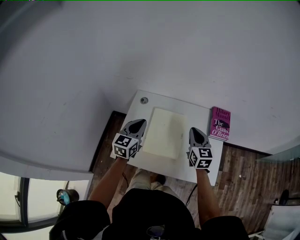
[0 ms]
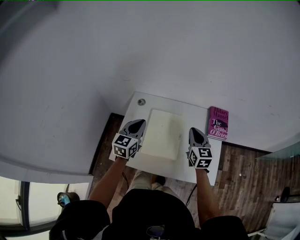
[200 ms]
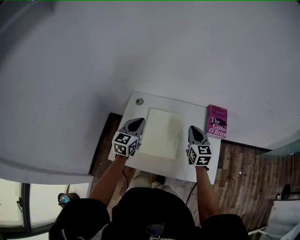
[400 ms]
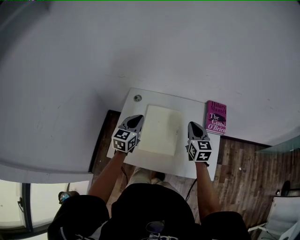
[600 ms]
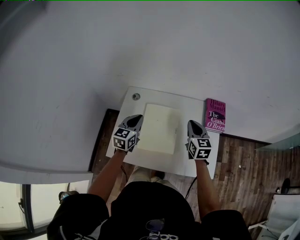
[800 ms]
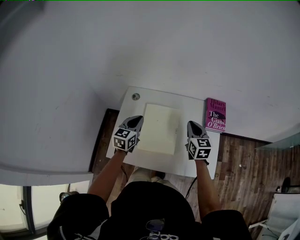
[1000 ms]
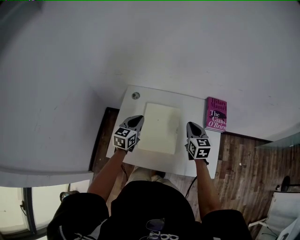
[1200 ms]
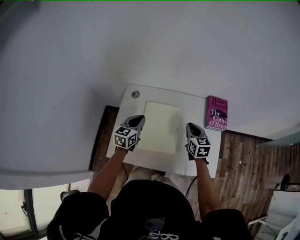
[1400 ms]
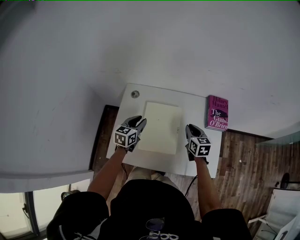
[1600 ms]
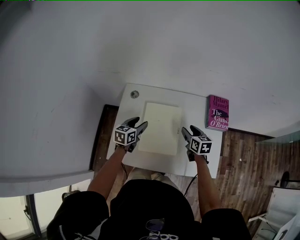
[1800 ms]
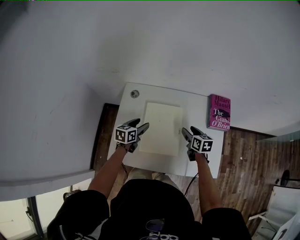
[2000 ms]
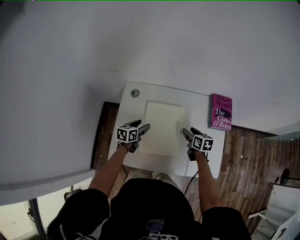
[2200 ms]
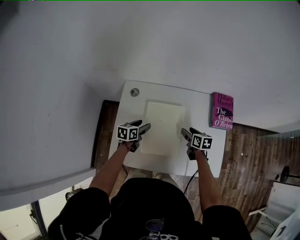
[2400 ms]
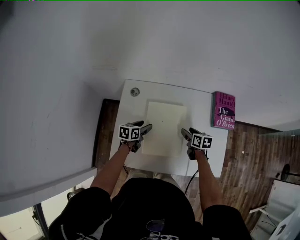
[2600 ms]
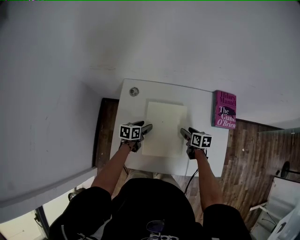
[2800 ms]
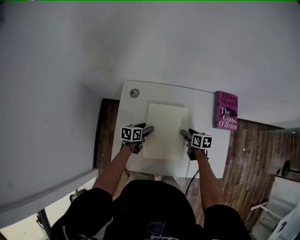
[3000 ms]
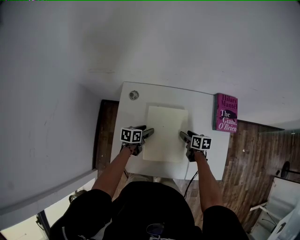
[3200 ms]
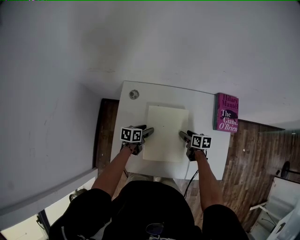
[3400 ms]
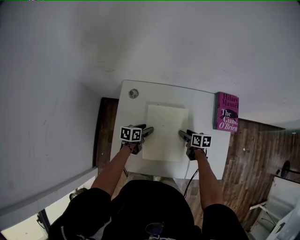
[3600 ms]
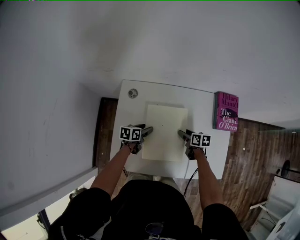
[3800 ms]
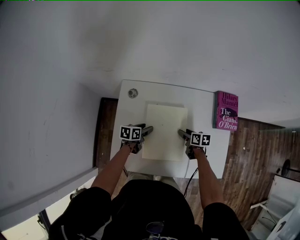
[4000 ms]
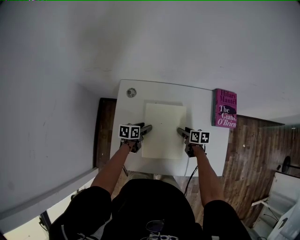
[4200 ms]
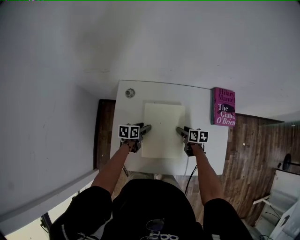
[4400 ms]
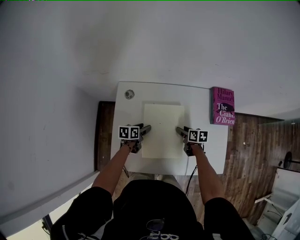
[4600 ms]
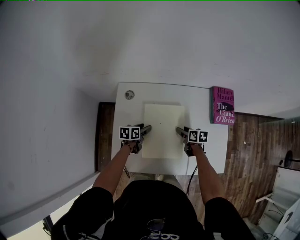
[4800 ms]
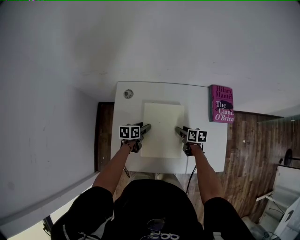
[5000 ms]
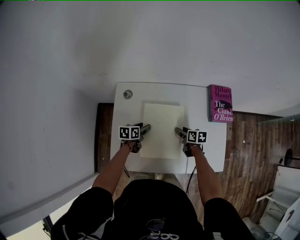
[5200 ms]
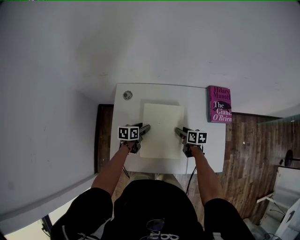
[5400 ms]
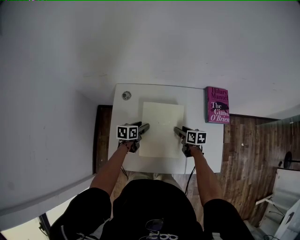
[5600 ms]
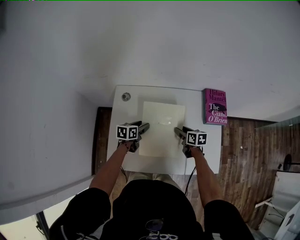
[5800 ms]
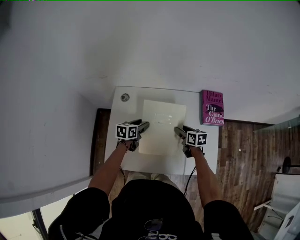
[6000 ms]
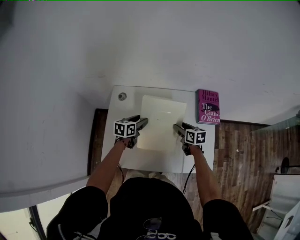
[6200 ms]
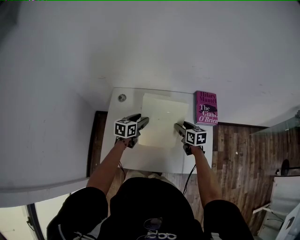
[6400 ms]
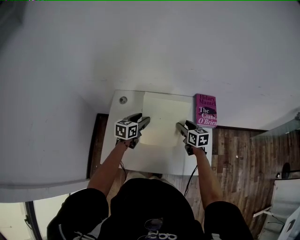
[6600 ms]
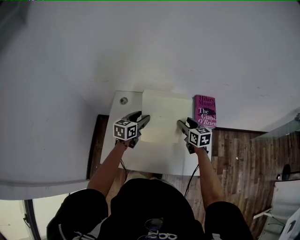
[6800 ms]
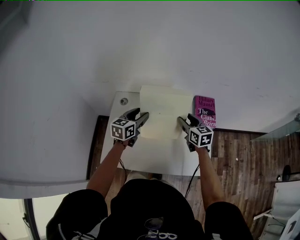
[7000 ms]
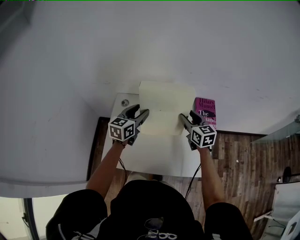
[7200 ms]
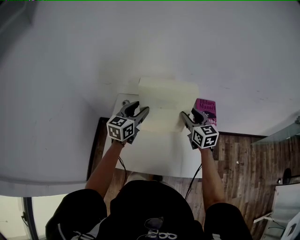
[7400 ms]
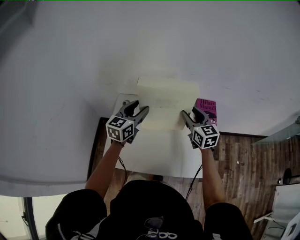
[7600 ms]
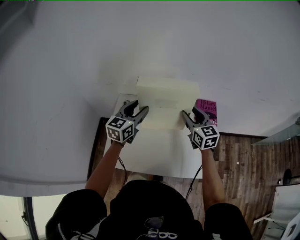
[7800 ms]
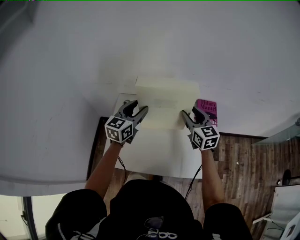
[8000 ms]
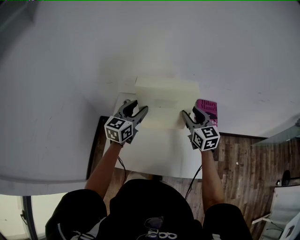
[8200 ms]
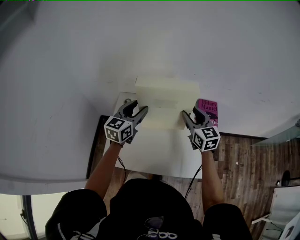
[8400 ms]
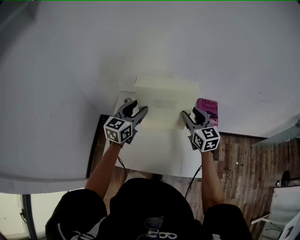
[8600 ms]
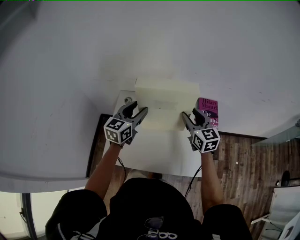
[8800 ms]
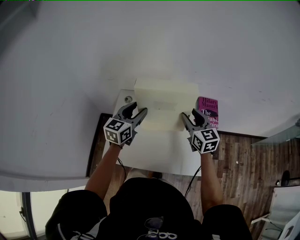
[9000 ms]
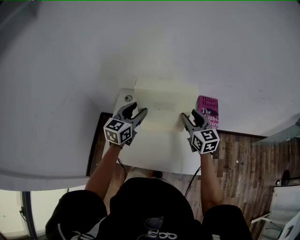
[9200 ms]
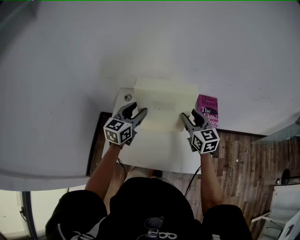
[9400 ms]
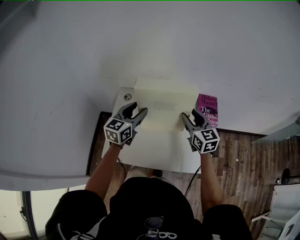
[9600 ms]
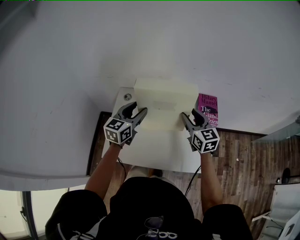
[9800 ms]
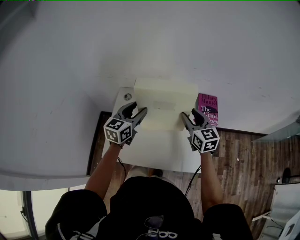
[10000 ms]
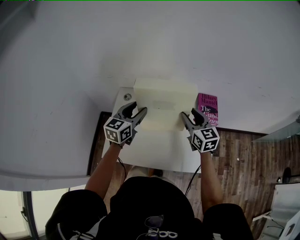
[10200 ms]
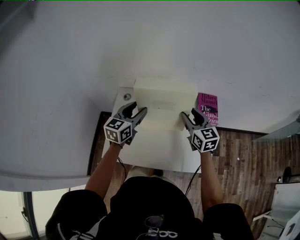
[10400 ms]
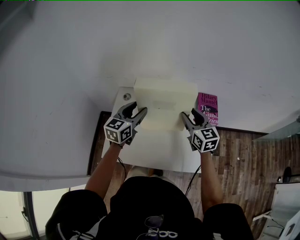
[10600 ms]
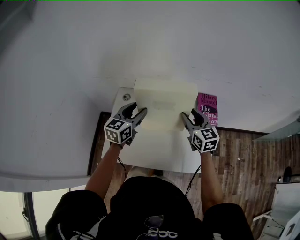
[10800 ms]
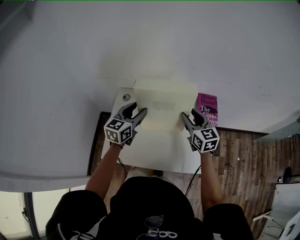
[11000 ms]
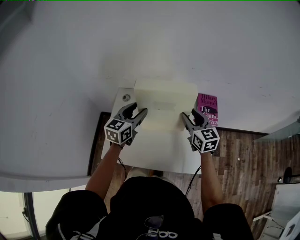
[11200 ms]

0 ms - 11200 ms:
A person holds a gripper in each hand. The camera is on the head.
0 ms - 1600 ms: The right gripper heads downward, covering approximately 10 cm; the left gripper is displaced downward and forward by roughly 15 cm.
1600 ms - 3200 ms: The two grippers go about 15 cm downward. The right gripper changes its angle by about 30 degrees, and opens up. The left gripper changes its angle by some 30 degrees, and opens its fingers.
3200 ms - 4800 ms: The two grippers keep their place.
4800 ms - 6400 ms: The grippers both shift upward and to the right by approximately 15 cm. The left gripper turns by roughly 20 degrees, while the right gripper swivels approximately 20 degrees.
6400 ms - 8000 ms: Both grippers move upward, about 20 cm. The left gripper changes its angle by about 30 degrees, while the right gripper changes its angle by roughly 30 degrees.
8000 ms - 11200 ms: The grippers make only small movements.

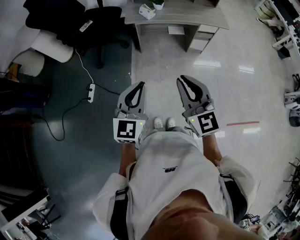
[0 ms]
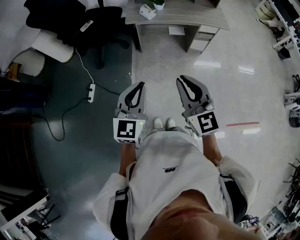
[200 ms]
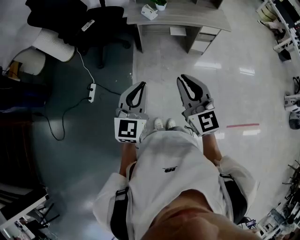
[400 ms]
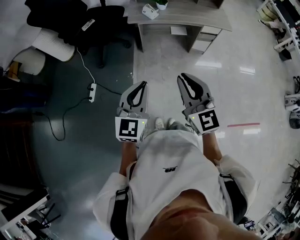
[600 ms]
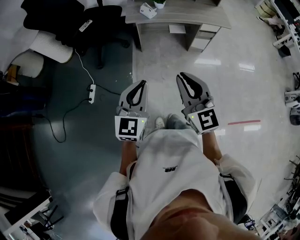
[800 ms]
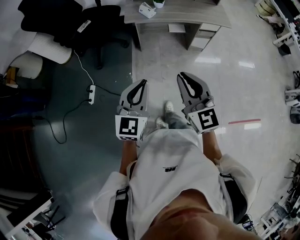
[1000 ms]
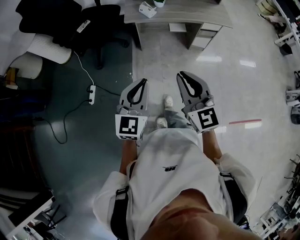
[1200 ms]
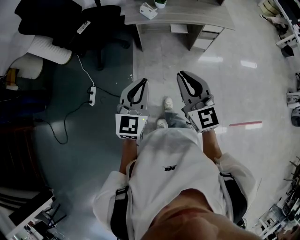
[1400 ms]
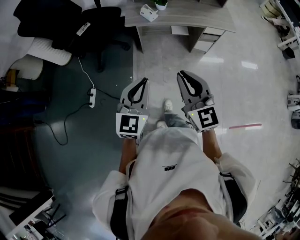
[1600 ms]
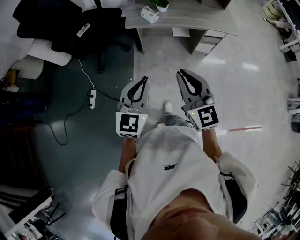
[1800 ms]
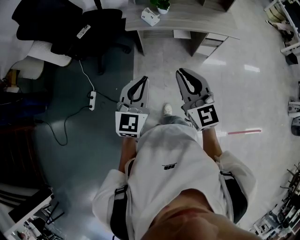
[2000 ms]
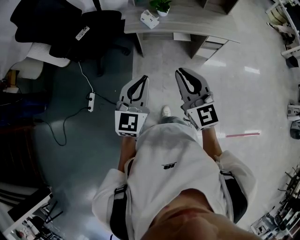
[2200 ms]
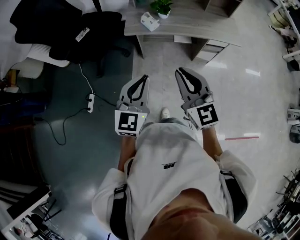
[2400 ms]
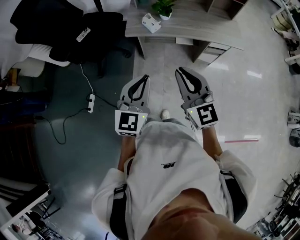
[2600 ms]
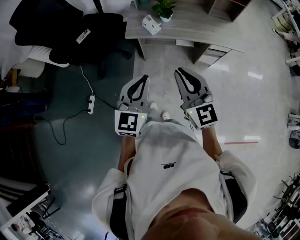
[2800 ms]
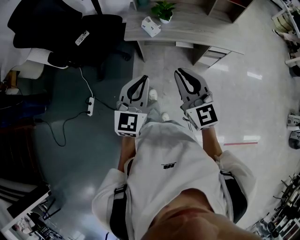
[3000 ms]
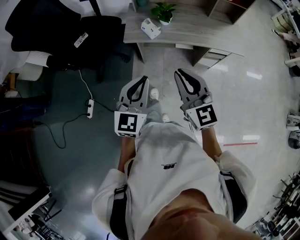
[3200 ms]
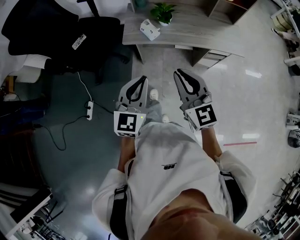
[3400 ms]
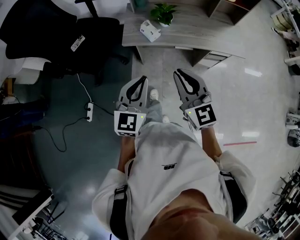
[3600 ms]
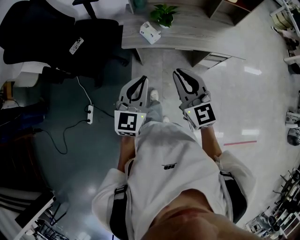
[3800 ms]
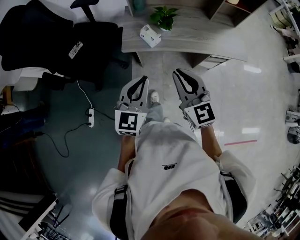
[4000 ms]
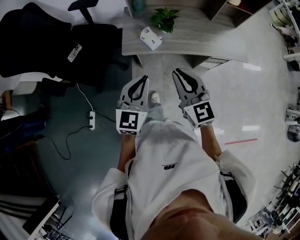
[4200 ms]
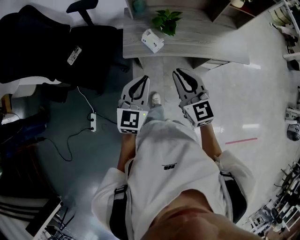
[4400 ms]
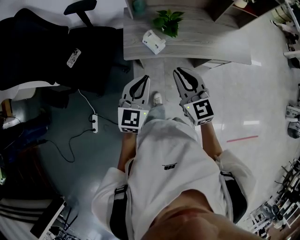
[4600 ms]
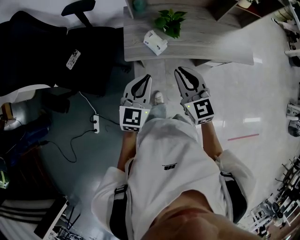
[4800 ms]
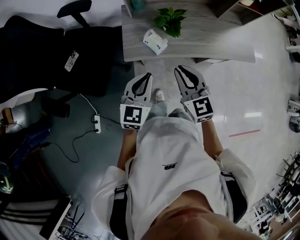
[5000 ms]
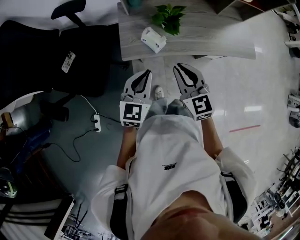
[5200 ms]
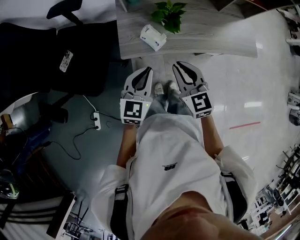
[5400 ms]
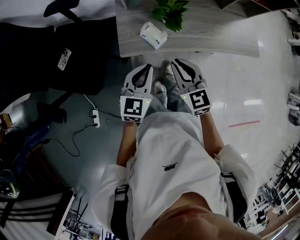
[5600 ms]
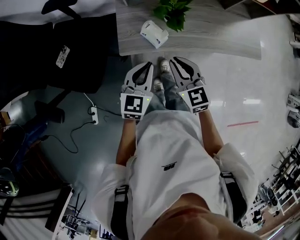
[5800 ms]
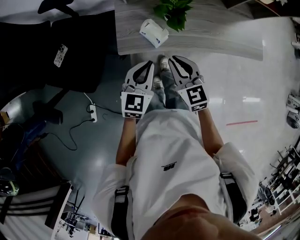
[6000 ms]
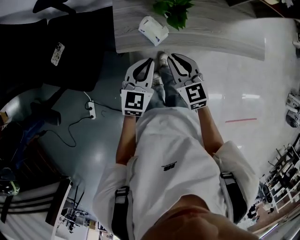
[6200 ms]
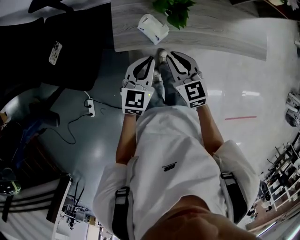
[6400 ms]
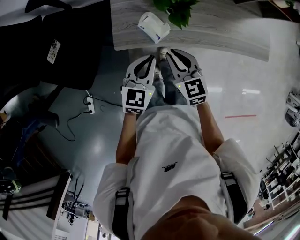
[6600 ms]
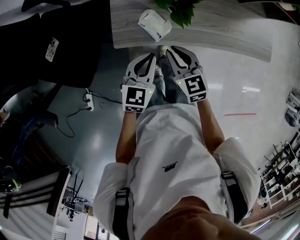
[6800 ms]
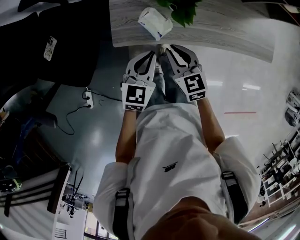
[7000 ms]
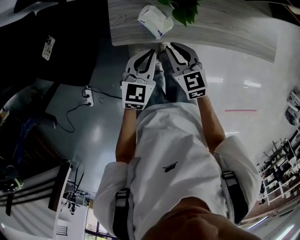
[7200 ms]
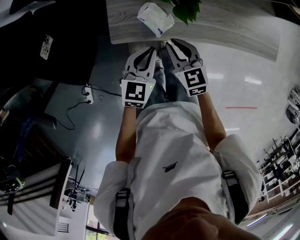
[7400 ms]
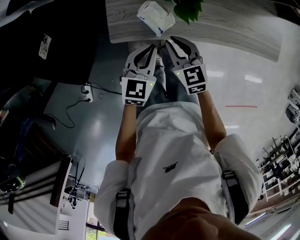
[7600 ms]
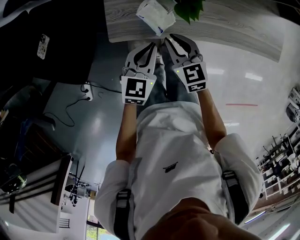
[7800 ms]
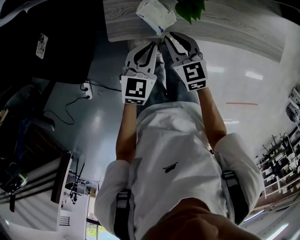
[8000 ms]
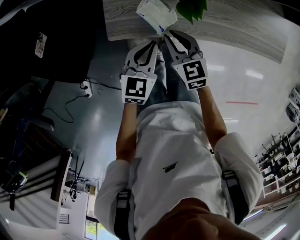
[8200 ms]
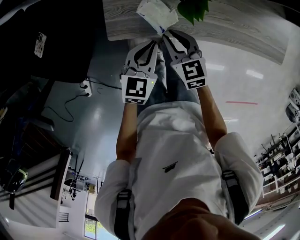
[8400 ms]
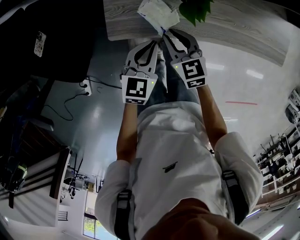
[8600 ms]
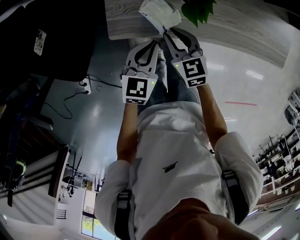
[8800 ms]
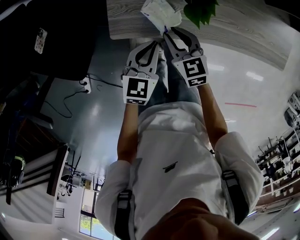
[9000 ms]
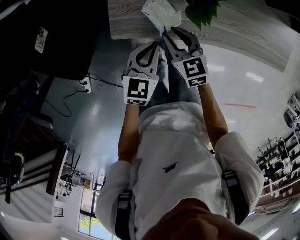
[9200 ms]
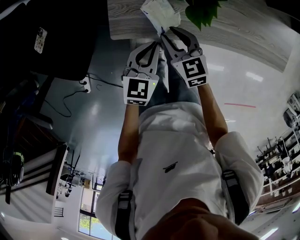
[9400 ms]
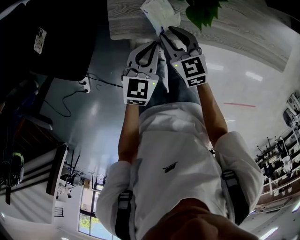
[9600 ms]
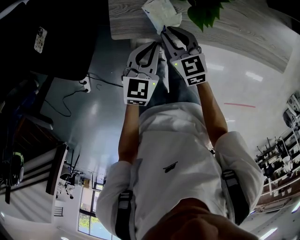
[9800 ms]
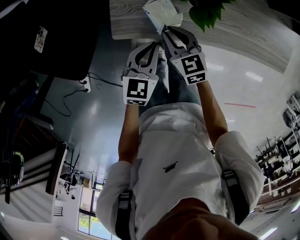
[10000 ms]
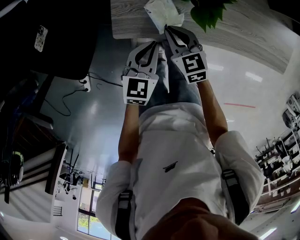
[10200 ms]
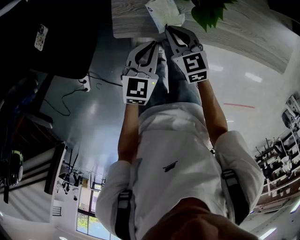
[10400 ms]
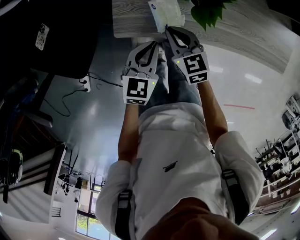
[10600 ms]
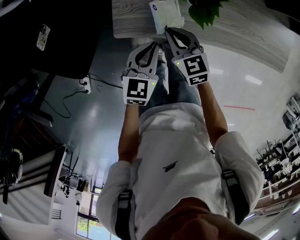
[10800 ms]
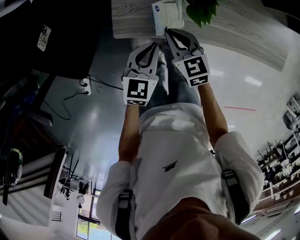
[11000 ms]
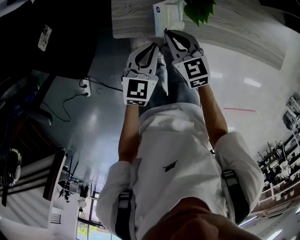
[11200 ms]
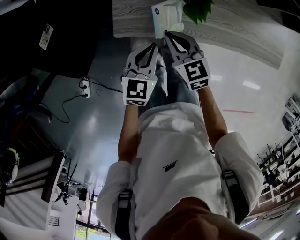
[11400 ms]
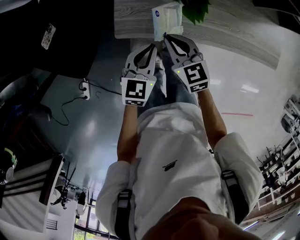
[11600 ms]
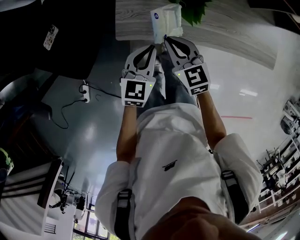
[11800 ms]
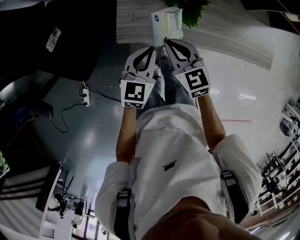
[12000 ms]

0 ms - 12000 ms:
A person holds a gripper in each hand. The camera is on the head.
0 ms - 1600 ms: Both grippers travel together forward, roughly 10 cm.
1600 ms - 3000 ms: Both grippers travel together forward, roughly 20 cm.
3000 ms - 4400 ms: The two grippers go about 20 cm forward.
4400 ms - 6000 ms: The right gripper goes approximately 20 cm downward and forward, while the left gripper goes approximately 20 cm forward and downward.
6000 ms - 7600 ms: The left gripper is displaced downward by about 10 cm. The right gripper heads downward and forward, covering roughly 15 cm.
7600 ms - 9000 ms: The right gripper ends up approximately 5 cm from where it was.
9000 ms - 10400 ms: There are only small adjustments of the grippers.
10400 ms - 12000 ms: The two grippers go roughly 10 cm upward.

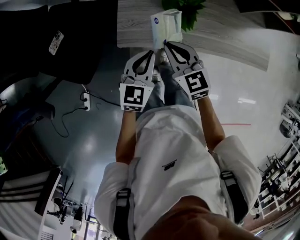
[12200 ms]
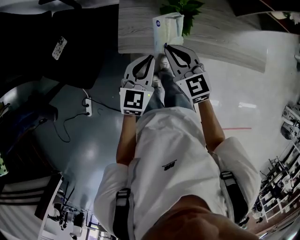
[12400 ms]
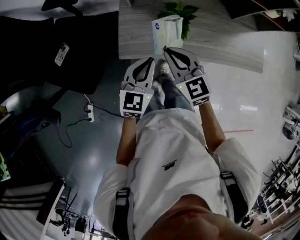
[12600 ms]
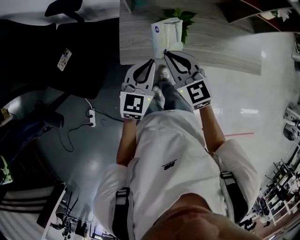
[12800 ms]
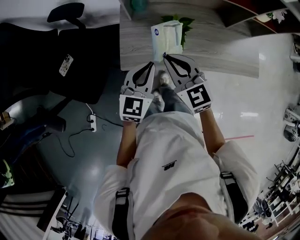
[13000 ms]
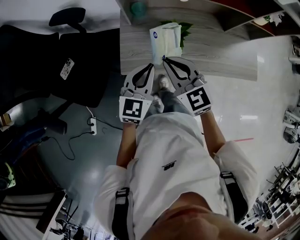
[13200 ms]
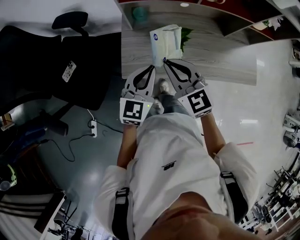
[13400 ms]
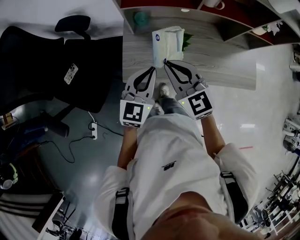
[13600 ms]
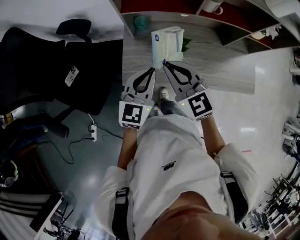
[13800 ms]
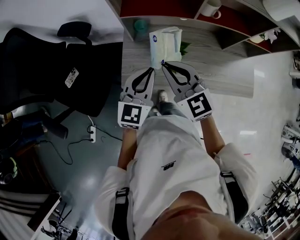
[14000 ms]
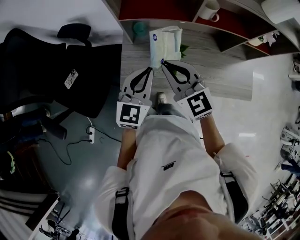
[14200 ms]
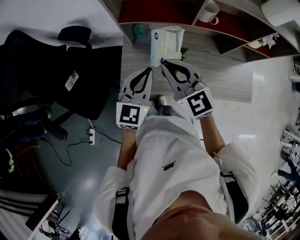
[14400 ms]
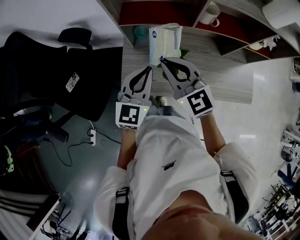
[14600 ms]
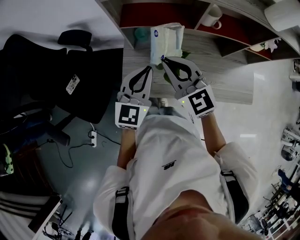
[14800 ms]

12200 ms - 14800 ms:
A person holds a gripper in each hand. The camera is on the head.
12200 ms - 13400 ms: The grippers both shift upward by approximately 10 cm.
13400 ms - 14800 ms: Both grippers travel together forward and upward, roughly 10 cm.
